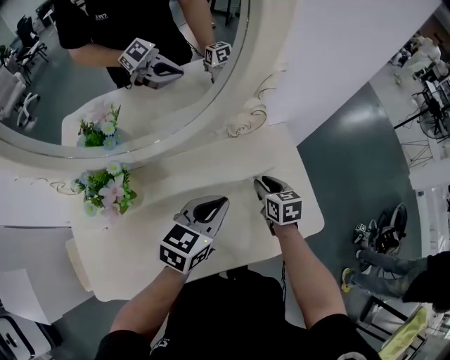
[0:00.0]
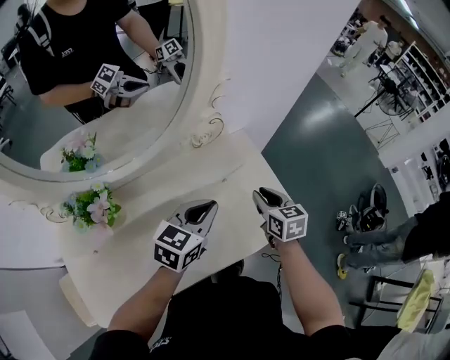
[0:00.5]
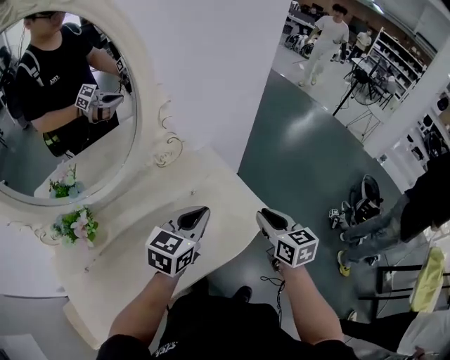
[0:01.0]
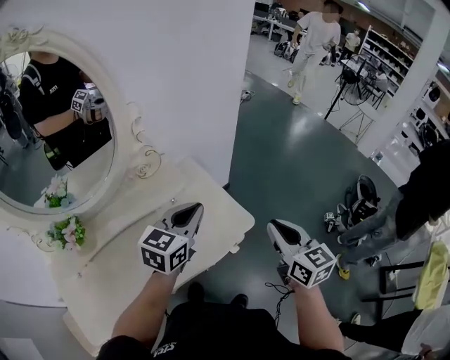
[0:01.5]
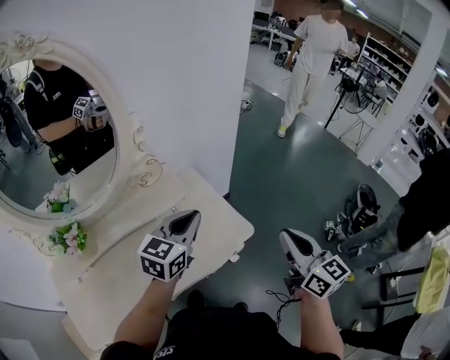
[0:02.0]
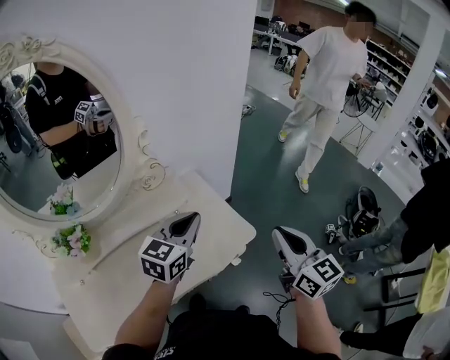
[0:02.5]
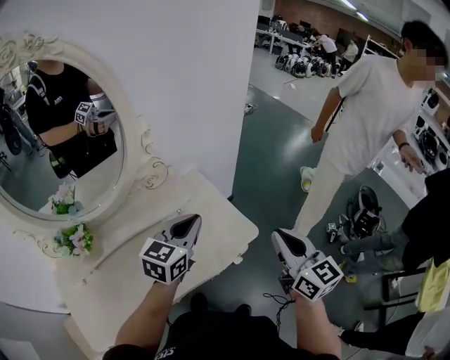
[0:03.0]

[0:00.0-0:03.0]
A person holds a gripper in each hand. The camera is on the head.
0:00.0 to 0:01.5: The left gripper heads to the right and upward, covering roughly 20 cm. The right gripper is displaced to the right, upward and backward by approximately 40 cm, changes its angle by about 30 degrees, and closes its fingers.
0:01.5 to 0:03.0: The right gripper travels upward by about 5 cm.

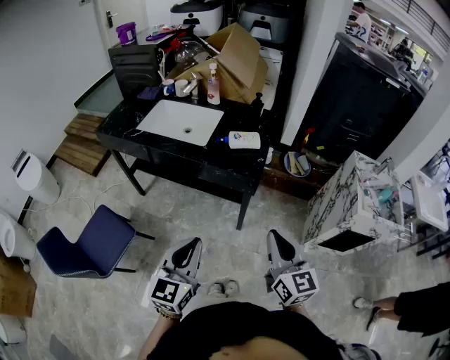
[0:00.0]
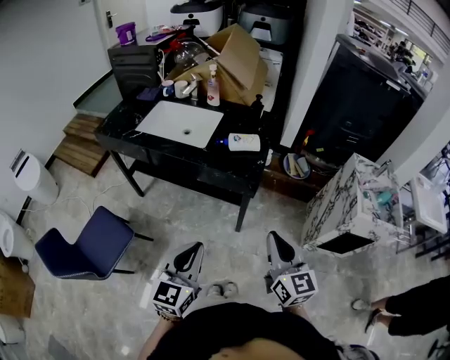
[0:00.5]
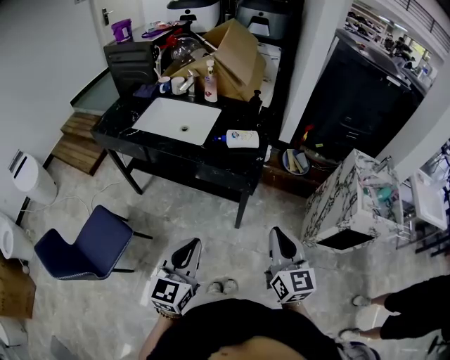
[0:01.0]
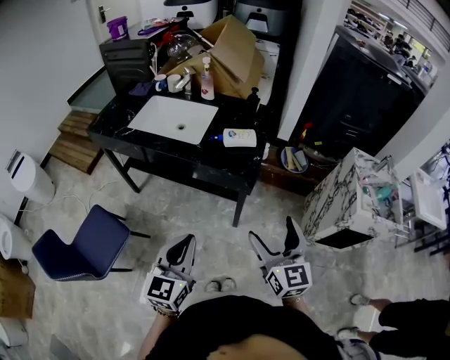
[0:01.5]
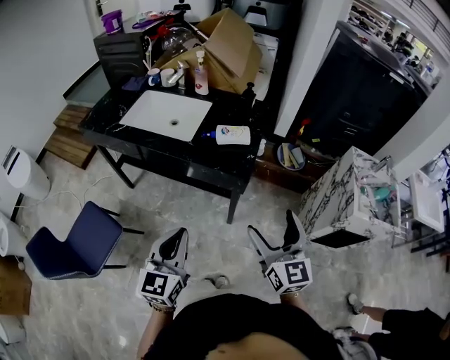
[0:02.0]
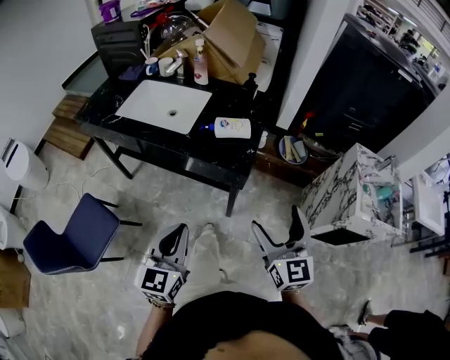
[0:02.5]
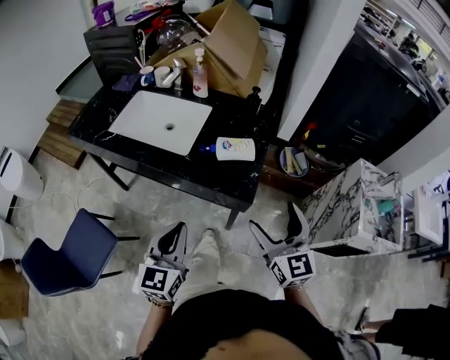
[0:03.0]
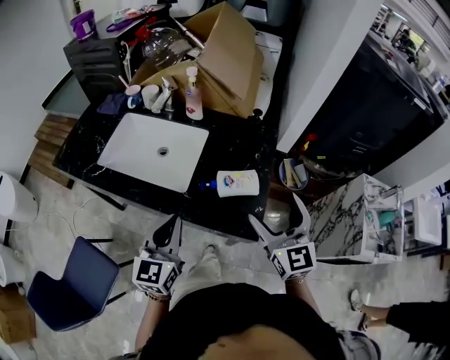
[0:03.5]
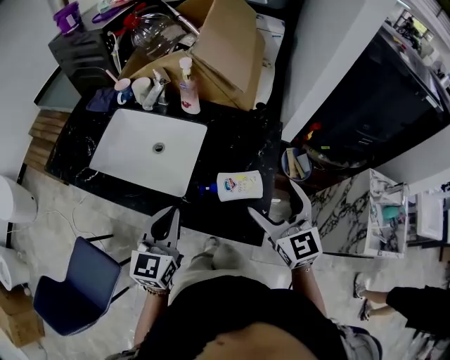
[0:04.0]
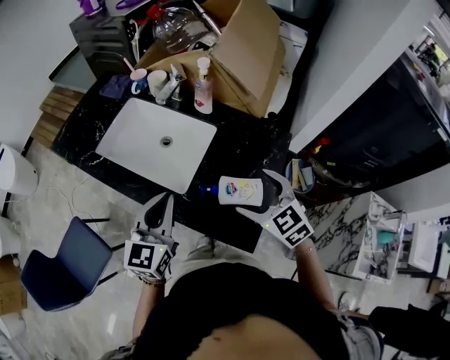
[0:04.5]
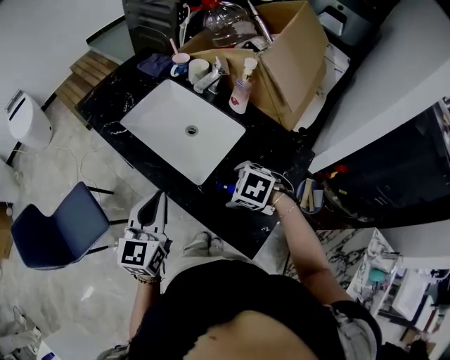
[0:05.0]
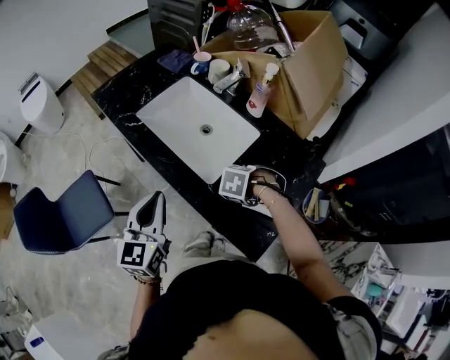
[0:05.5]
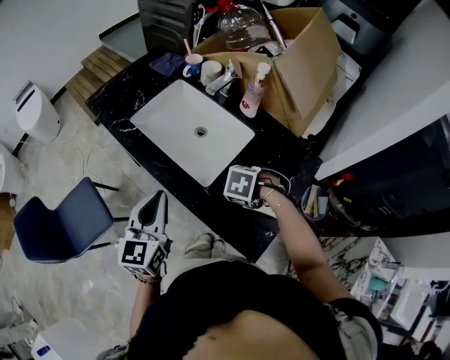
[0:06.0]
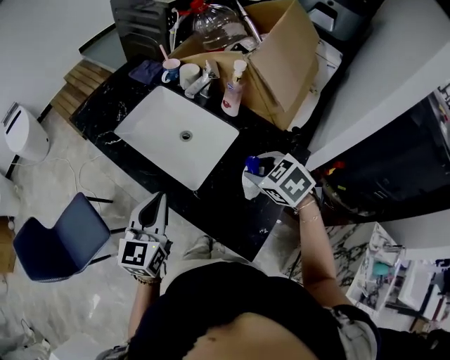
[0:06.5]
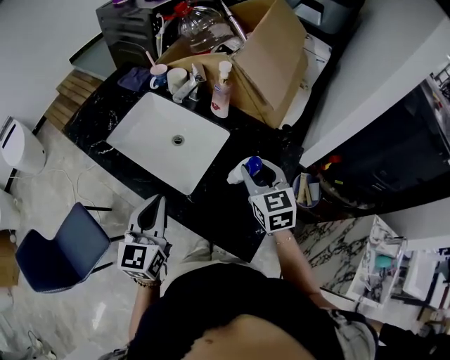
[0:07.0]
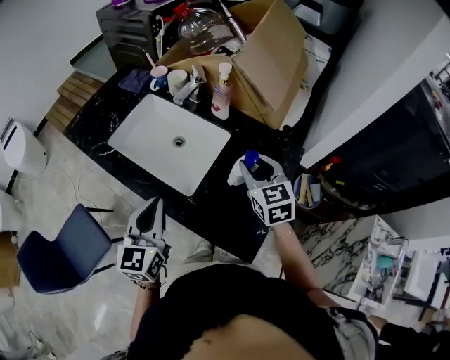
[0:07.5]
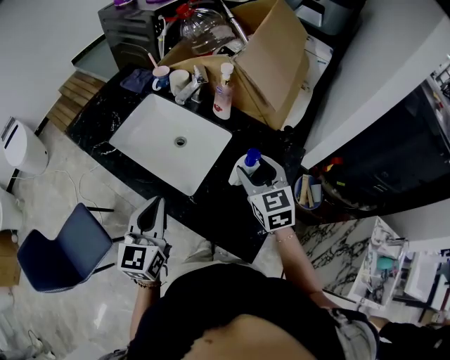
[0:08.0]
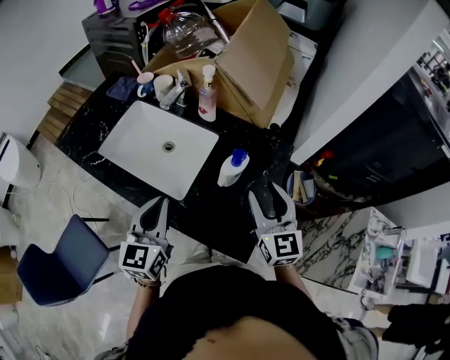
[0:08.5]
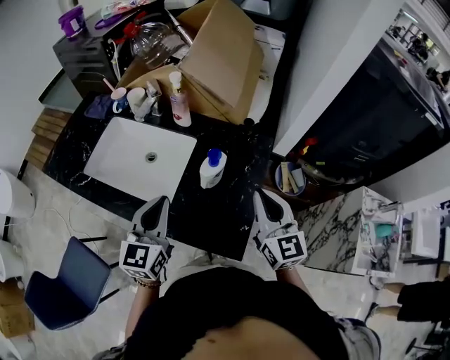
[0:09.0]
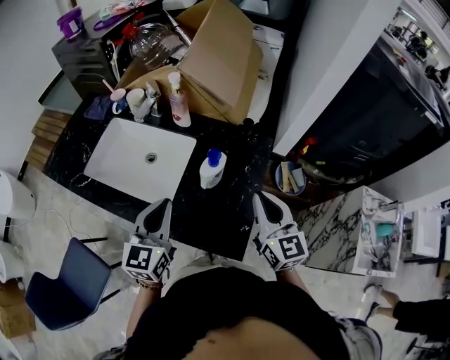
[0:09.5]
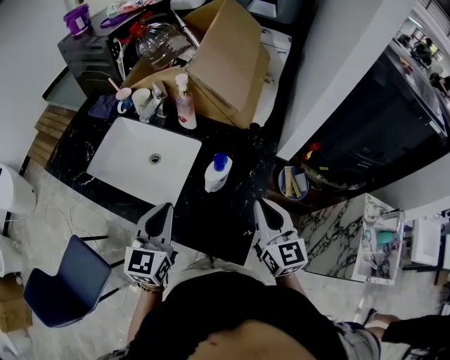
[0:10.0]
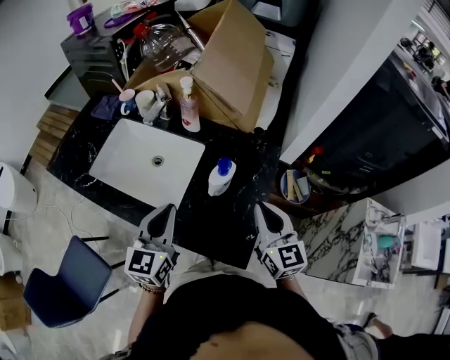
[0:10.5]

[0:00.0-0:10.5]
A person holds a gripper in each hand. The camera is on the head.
0:00.0 to 0:02.0: Both grippers travel together forward, approximately 5 cm. The right gripper opens its fingers.
0:02.0 to 0:04.0: The two grippers go approximately 35 cm forward.
0:04.0 to 0:06.5: The right gripper goes downward and returns, roughly 20 cm each way, tips its fingers downward by some 40 degrees, and closes up. Meanwhile the left gripper swivels about 20 degrees.
0:06.5 to 0:08.5: The left gripper shifts by about 5 cm, while the right gripper heads backward and to the right, covering approximately 10 cm, and tips its fingers upward by some 50 degrees.
0:08.5 to 0:10.5: The right gripper closes; the left gripper shifts by approximately 5 cm.

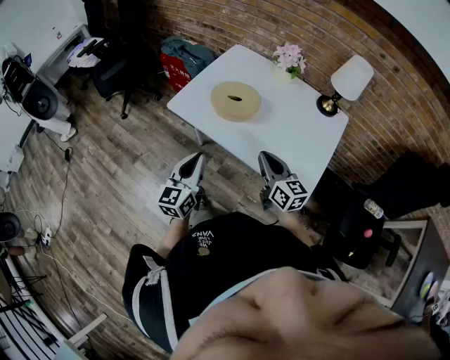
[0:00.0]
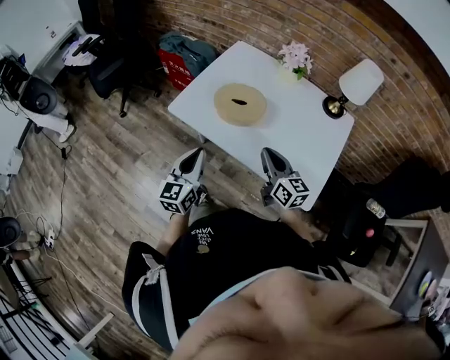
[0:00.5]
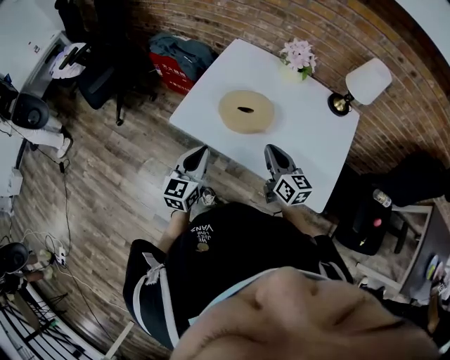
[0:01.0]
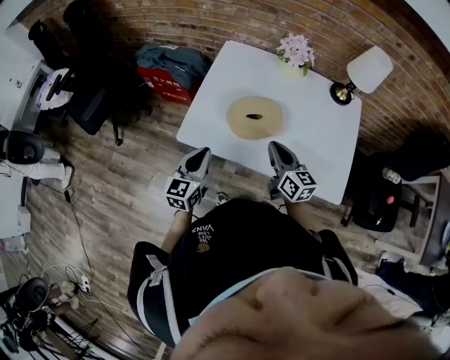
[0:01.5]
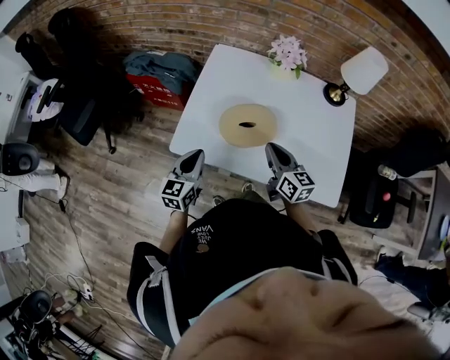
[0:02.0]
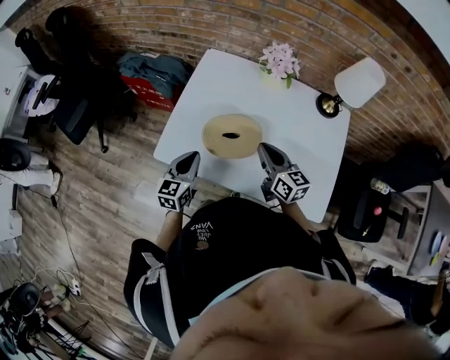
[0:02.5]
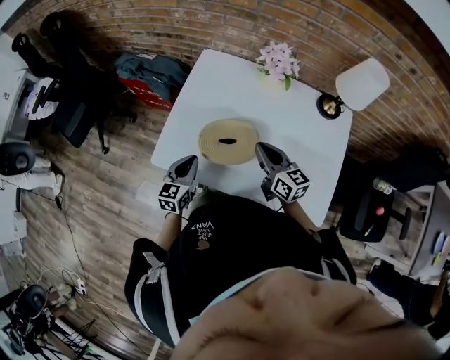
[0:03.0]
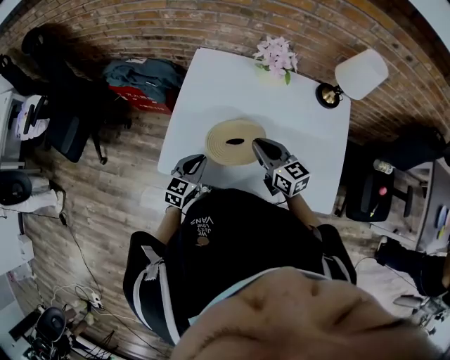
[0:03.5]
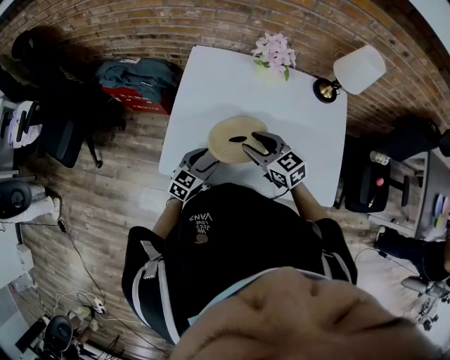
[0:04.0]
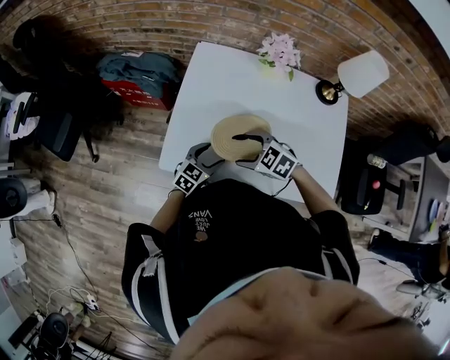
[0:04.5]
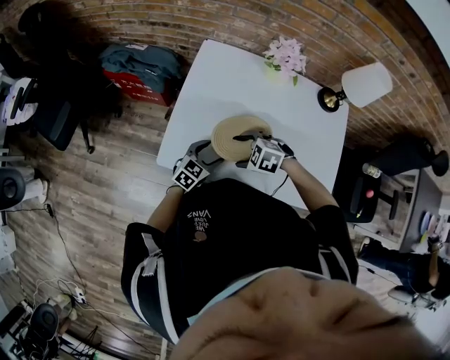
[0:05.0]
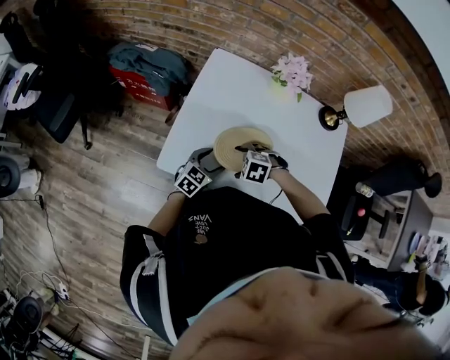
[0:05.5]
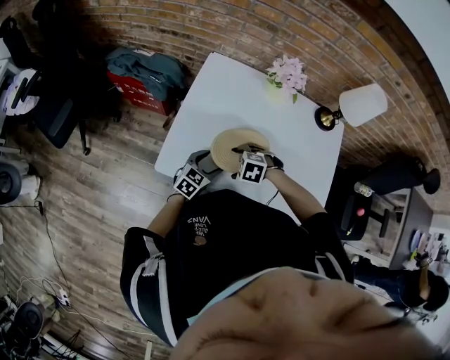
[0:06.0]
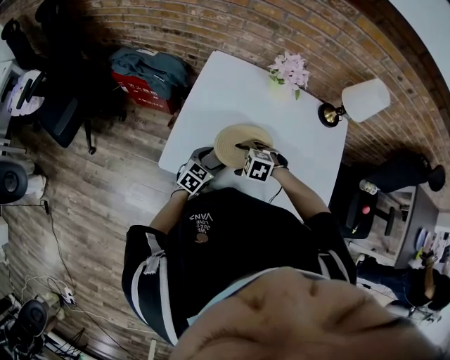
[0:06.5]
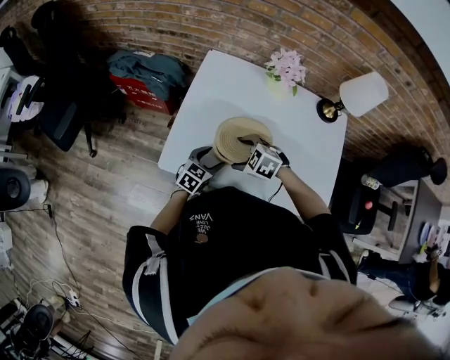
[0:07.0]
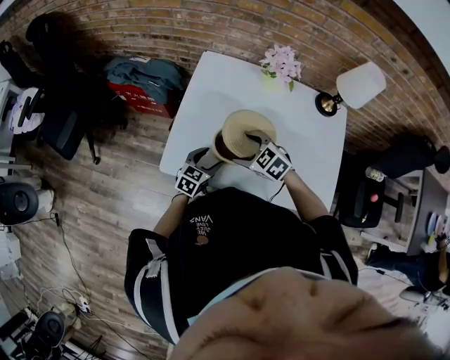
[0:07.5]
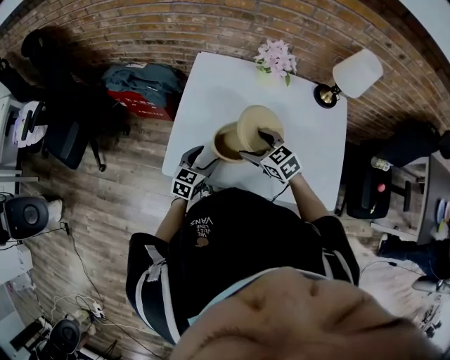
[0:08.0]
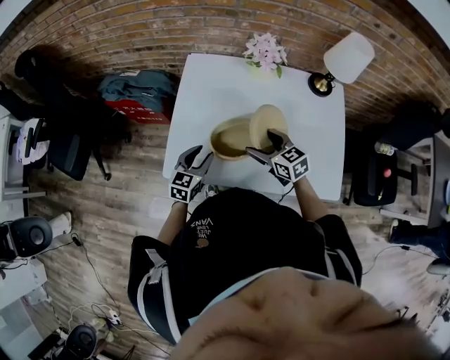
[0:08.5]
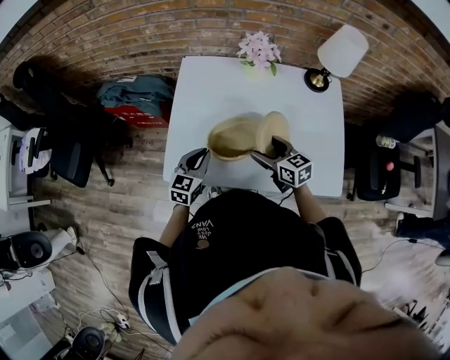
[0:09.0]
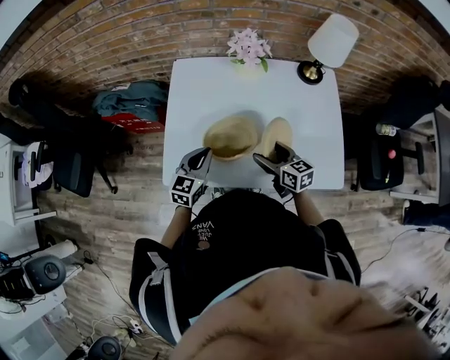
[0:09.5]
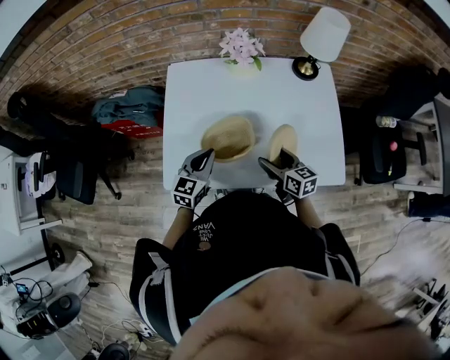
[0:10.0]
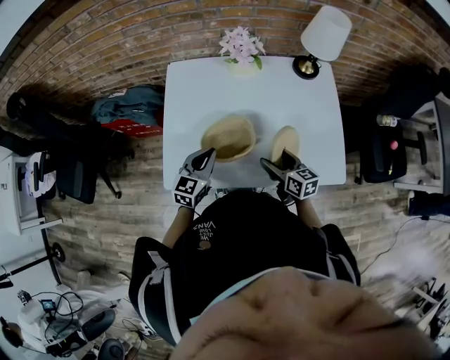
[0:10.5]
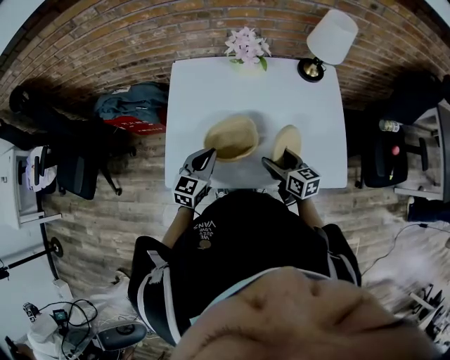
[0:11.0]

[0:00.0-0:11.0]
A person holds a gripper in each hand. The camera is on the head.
0:00.0 to 0:02.0: Both grippers travel together forward and to the left, about 25 cm. The left gripper swivels about 20 degrees, while the right gripper rotates approximately 20 degrees.
0:02.0 to 0:03.5: The left gripper travels downward, forward and to the right by some 10 cm. Meanwhile the right gripper goes approximately 10 cm forward.
0:03.5 to 0:05.5: The left gripper moves downward, approximately 5 cm, and opens. Meanwhile the right gripper is displaced downward by about 15 cm, points its fingers roughly 60 degrees further downward, and opens up.
0:05.5 to 0:07.5: The right gripper is displaced upward by some 5 cm, and turns by about 40 degrees.
0:07.5 to 0:09.0: The right gripper travels to the right by some 10 cm, and turns by about 50 degrees, while the left gripper is displaced upward by roughly 10 cm, and closes.
0:09.0 to 0:11.0: The right gripper shifts about 5 cm to the right.

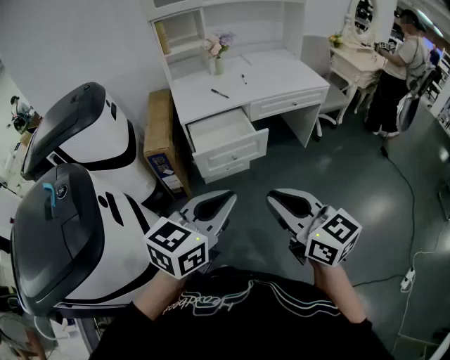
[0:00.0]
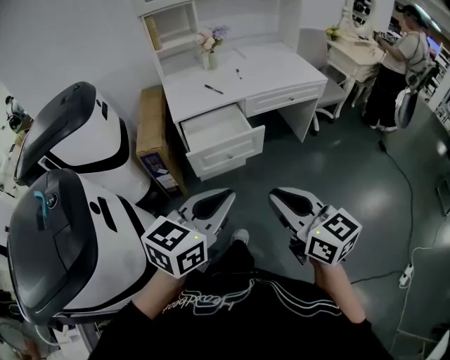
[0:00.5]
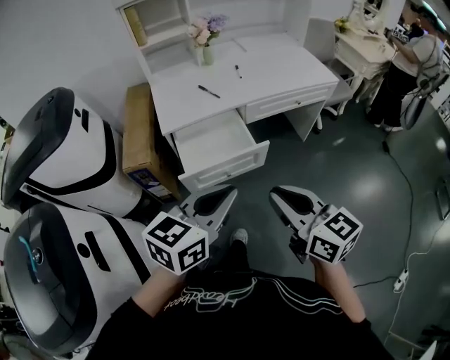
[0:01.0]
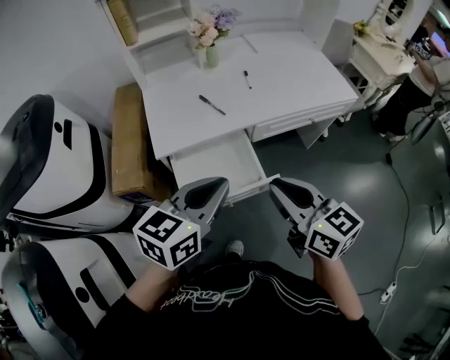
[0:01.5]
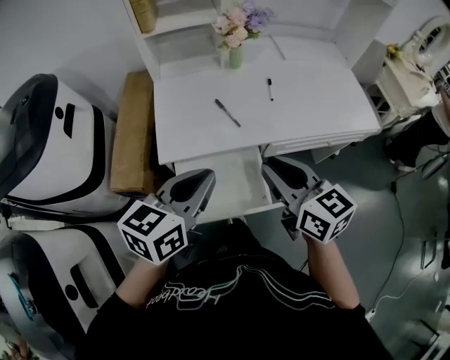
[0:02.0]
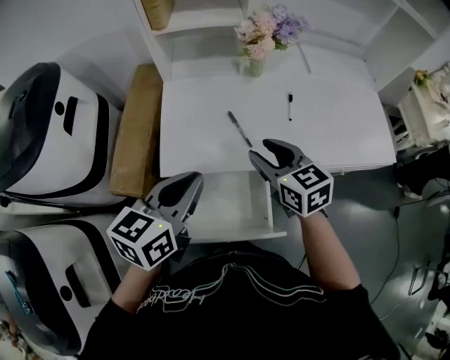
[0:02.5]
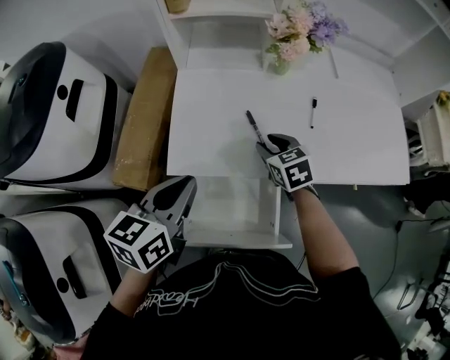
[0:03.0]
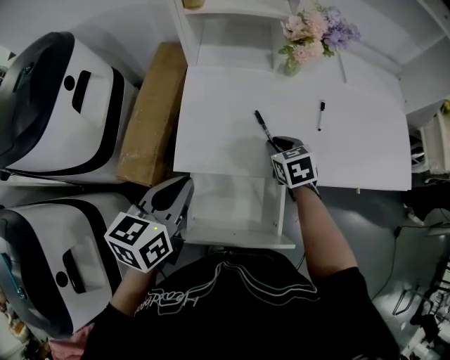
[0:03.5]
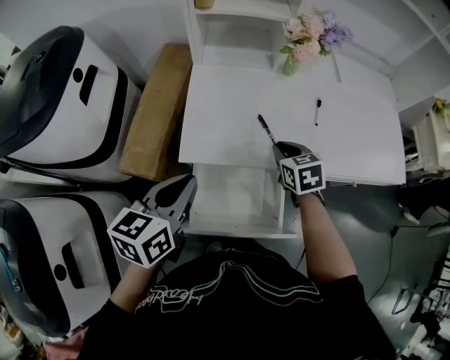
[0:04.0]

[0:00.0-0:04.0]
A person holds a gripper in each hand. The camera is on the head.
0:00.0 to 0:02.0: Both grippers are carried forward, approximately 60 cm.
0:02.0 to 0:04.0: The left gripper moves to the left, forward and downward, approximately 15 cm, and changes its angle by some 20 degrees. Meanwhile the right gripper moves forward and downward, roughly 25 cm, angles its fingers downward, by roughly 30 degrees, and opens, then closes once more.
